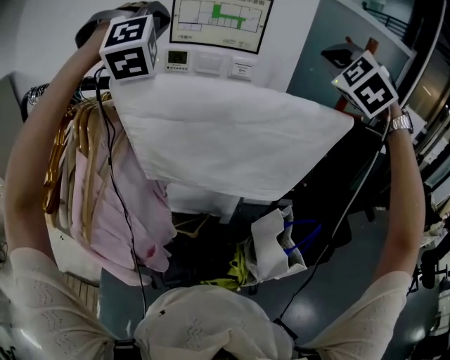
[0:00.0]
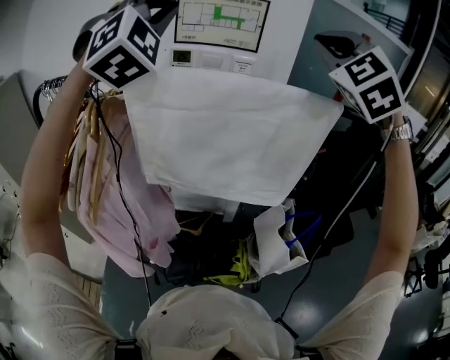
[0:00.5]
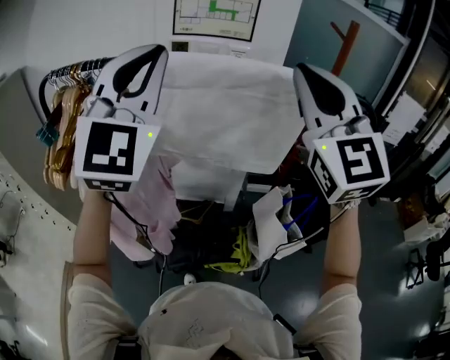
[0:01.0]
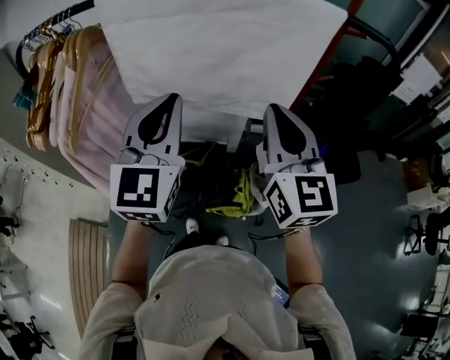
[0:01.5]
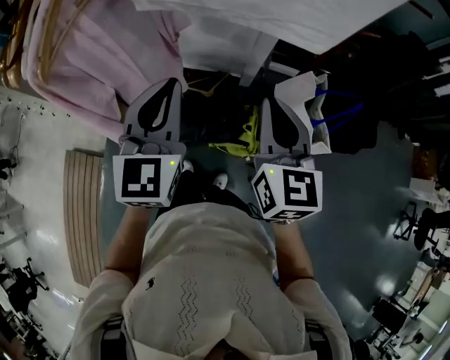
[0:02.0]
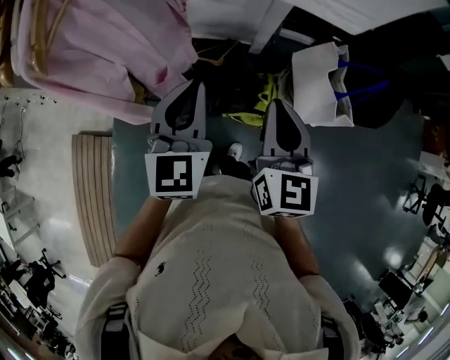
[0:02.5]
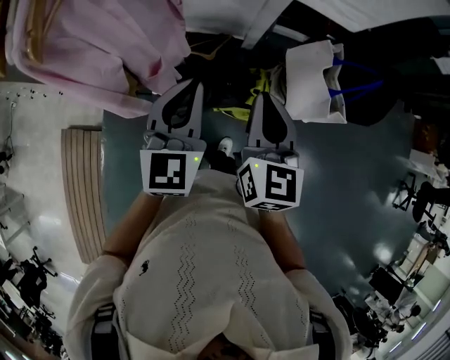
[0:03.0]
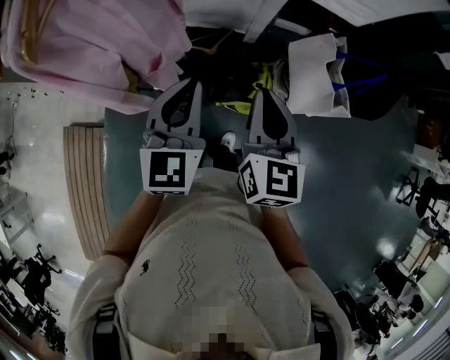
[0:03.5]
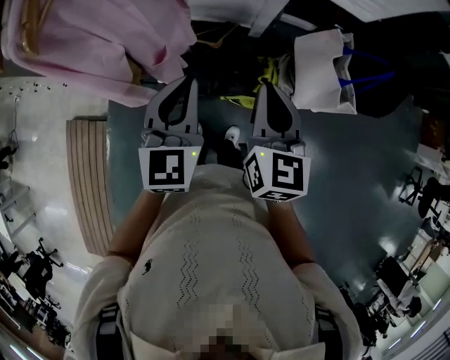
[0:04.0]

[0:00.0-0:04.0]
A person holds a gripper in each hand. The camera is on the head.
0:00.0 to 0:02.0: Both grippers move downward and backward, roughly 50 cm. The left gripper twists about 90 degrees counterclockwise, seen from behind. Meanwhile the right gripper twists roughly 70 degrees clockwise, seen from behind.
0:02.0 to 0:04.0: The right gripper travels downward and to the left by approximately 10 cm, while the left gripper shifts about 10 cm downward.

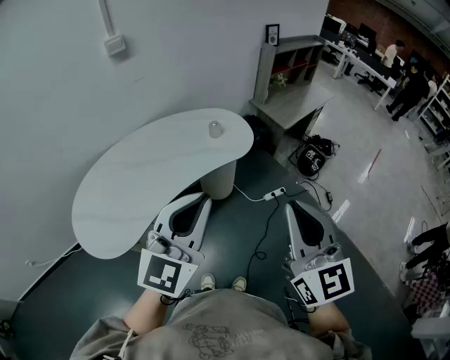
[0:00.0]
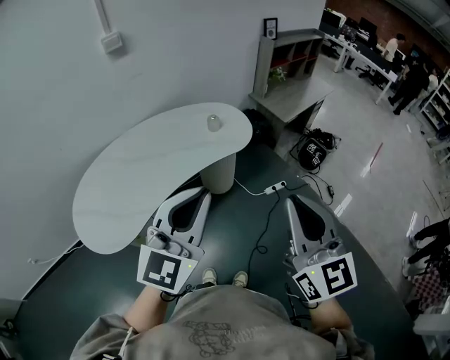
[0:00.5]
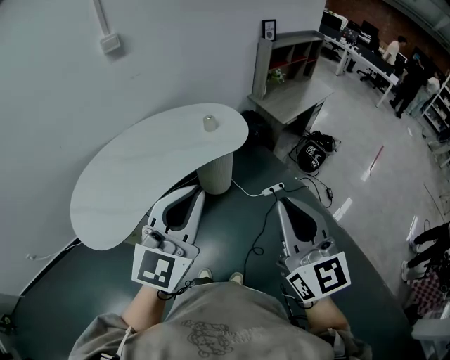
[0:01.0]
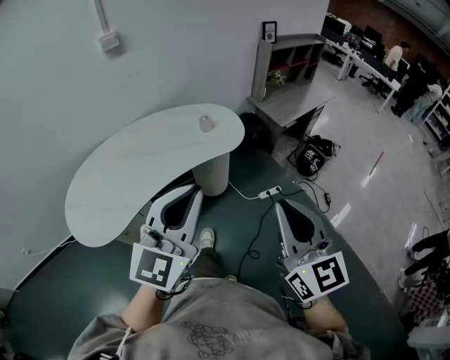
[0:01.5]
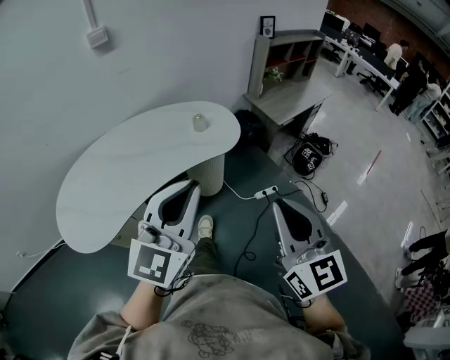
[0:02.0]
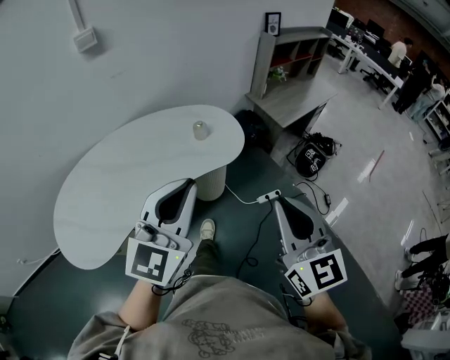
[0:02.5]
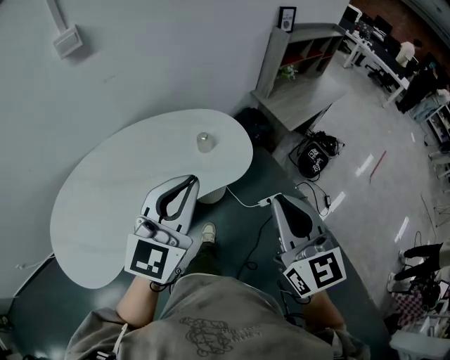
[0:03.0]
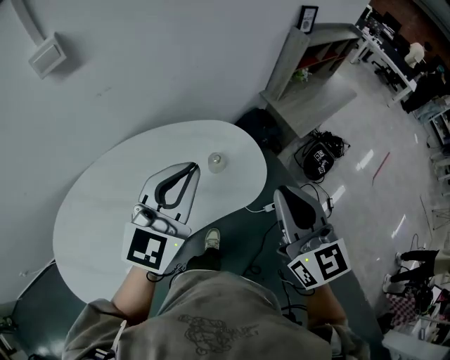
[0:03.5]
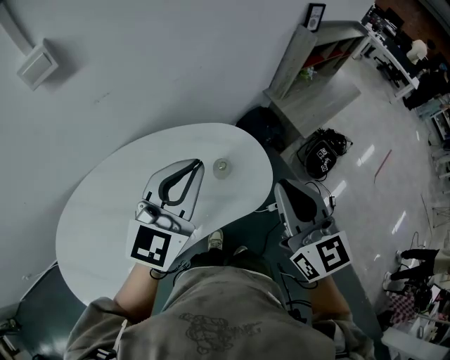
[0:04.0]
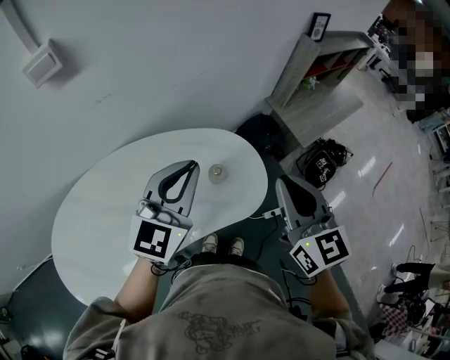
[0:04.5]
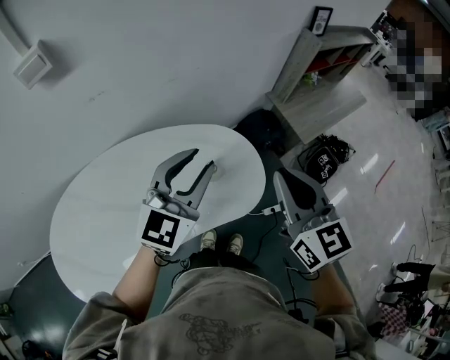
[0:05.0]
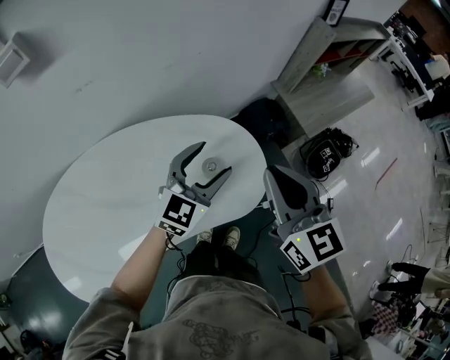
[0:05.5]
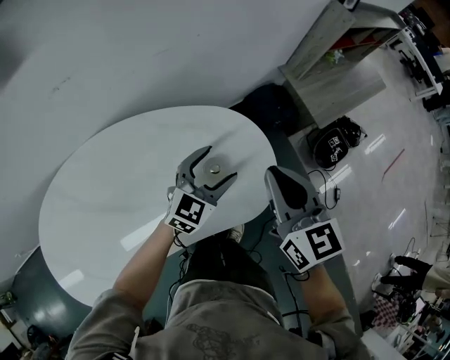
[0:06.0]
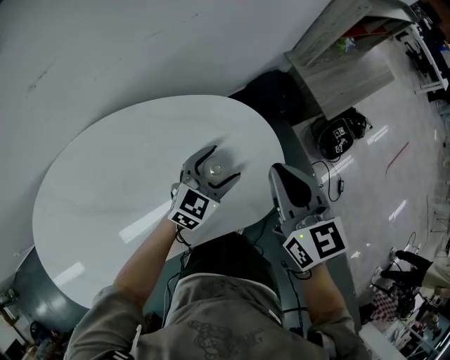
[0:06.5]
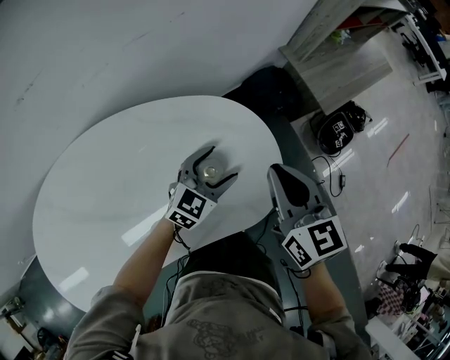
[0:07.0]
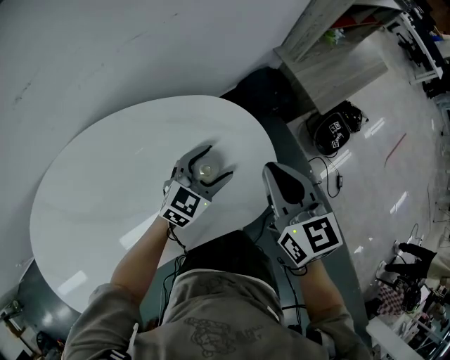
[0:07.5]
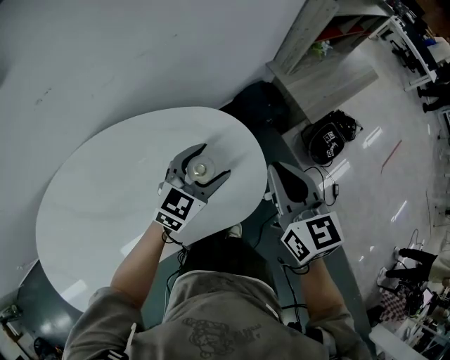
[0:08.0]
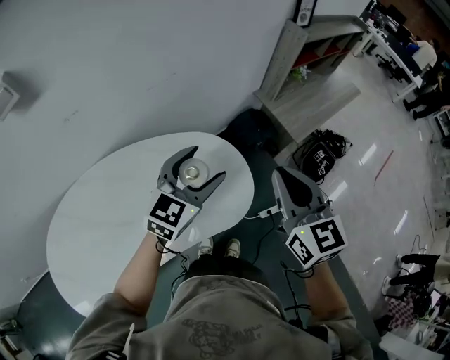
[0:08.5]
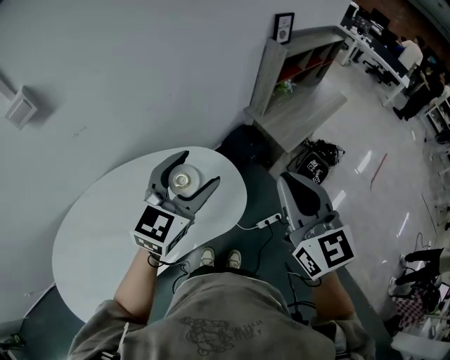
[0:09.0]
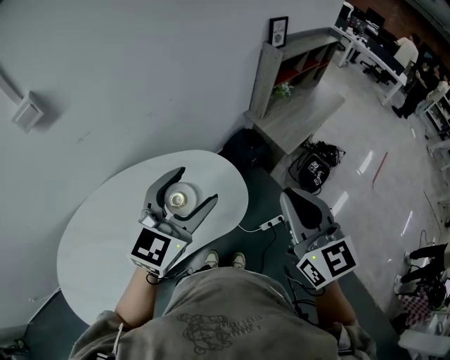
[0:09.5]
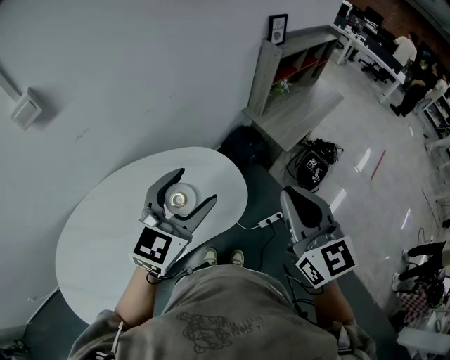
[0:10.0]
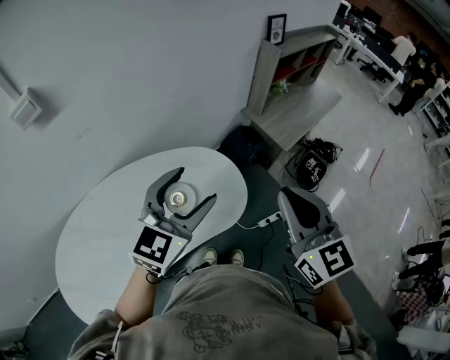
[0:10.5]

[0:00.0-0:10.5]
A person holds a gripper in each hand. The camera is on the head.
0:00.0 to 0:02.0: The left gripper shifts about 5 cm to the right. The right gripper heads to the right and downward, covering roughly 10 cm.
0:02.0 to 0:04.0: The pair of grippers is taken forward, about 40 cm.
0:04.0 to 0:06.5: The left gripper is displaced downward by approximately 35 cm, turns by roughly 20 degrees, and opens up; the right gripper travels downward and forward by some 25 cm.
0:06.5 to 0:08.5: The left gripper moves upward, about 25 cm, while the right gripper moves upward and to the right, some 15 cm.
0:08.5 to 0:10.5: The right gripper moves backward and upward, roughly 15 cm. Meanwhile the left gripper moves upward and backward, roughly 15 cm.

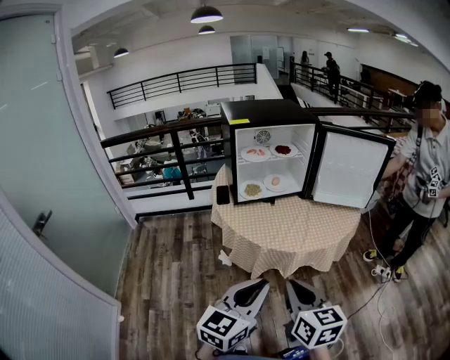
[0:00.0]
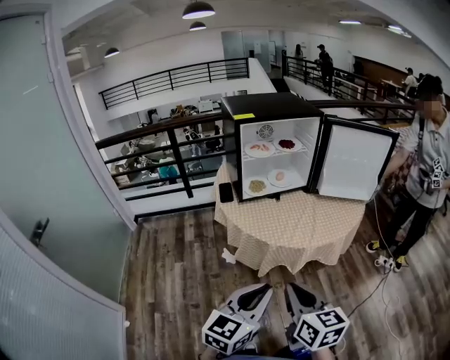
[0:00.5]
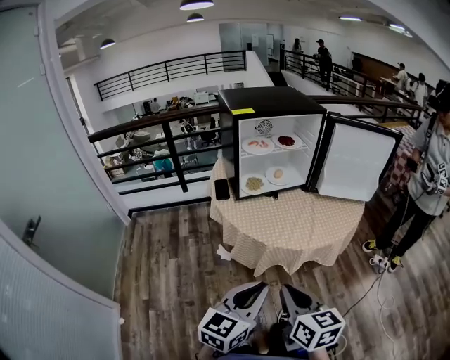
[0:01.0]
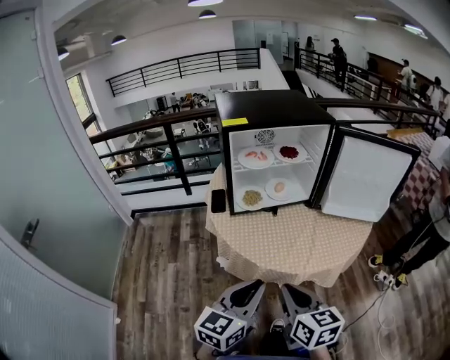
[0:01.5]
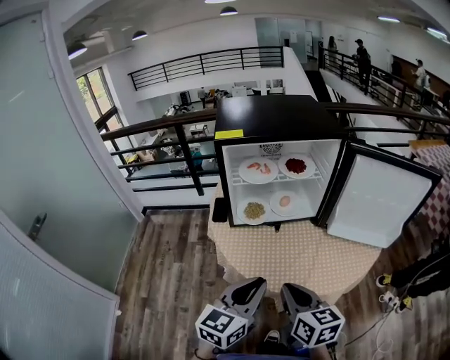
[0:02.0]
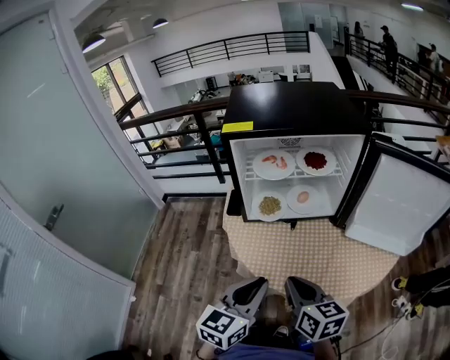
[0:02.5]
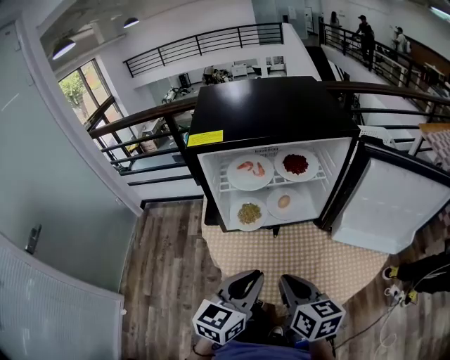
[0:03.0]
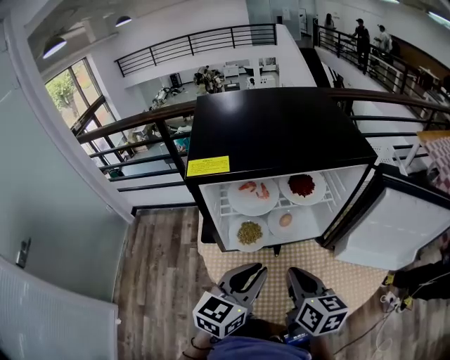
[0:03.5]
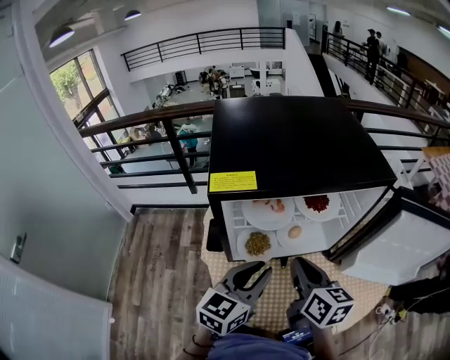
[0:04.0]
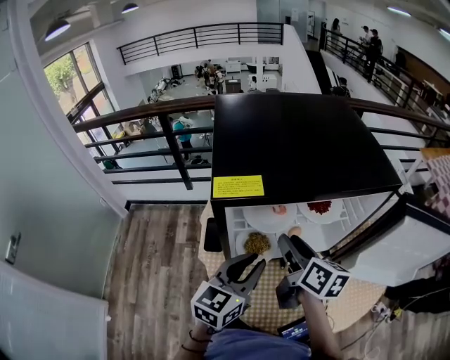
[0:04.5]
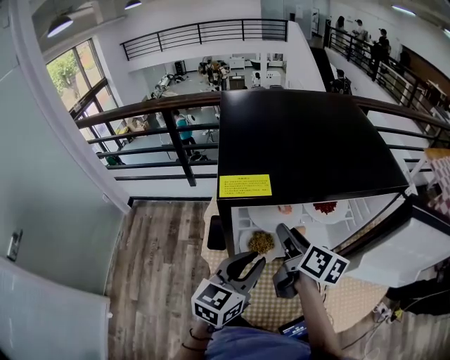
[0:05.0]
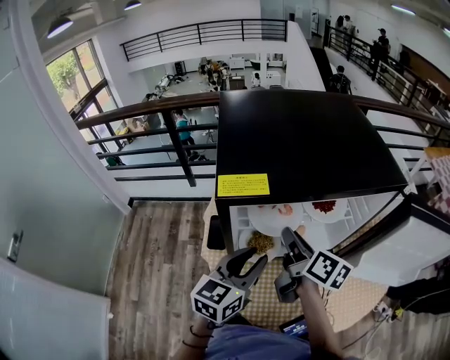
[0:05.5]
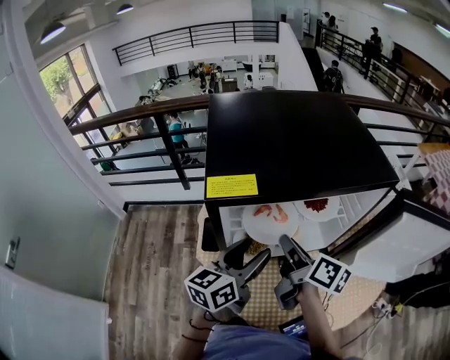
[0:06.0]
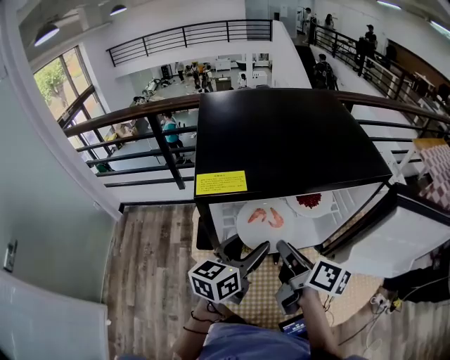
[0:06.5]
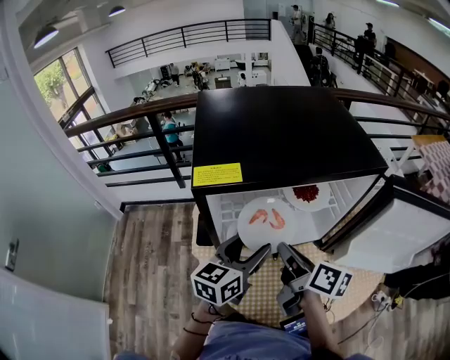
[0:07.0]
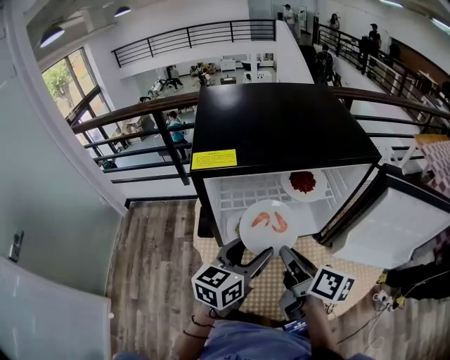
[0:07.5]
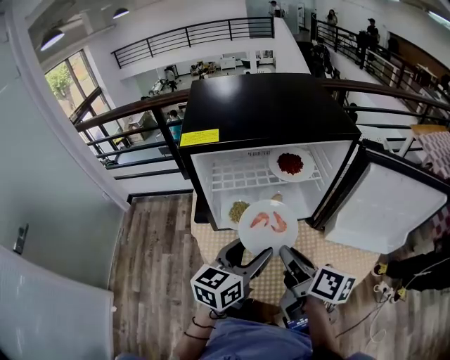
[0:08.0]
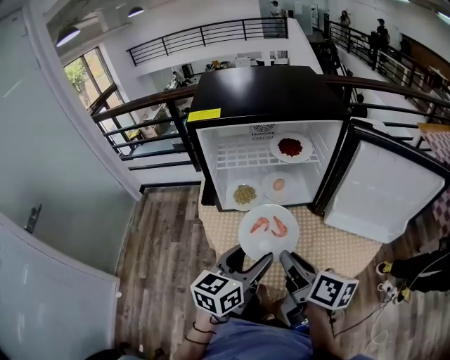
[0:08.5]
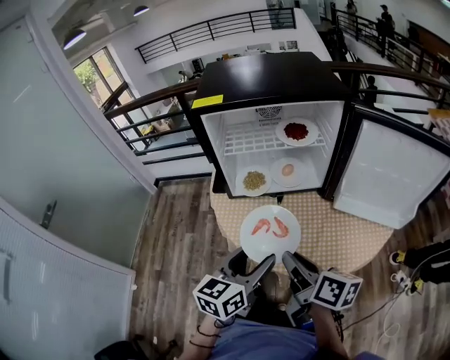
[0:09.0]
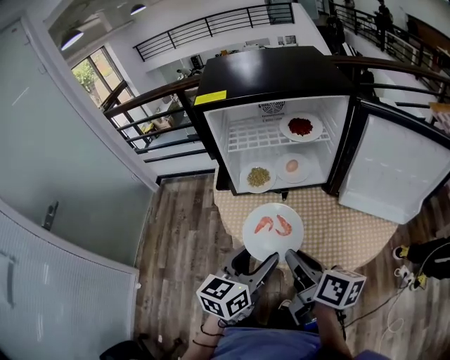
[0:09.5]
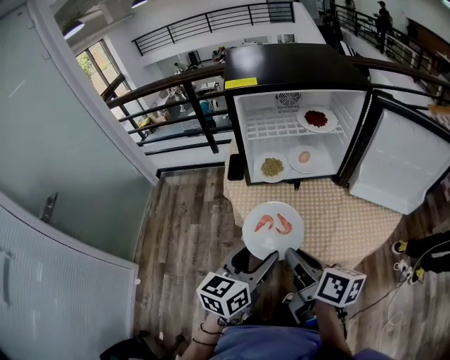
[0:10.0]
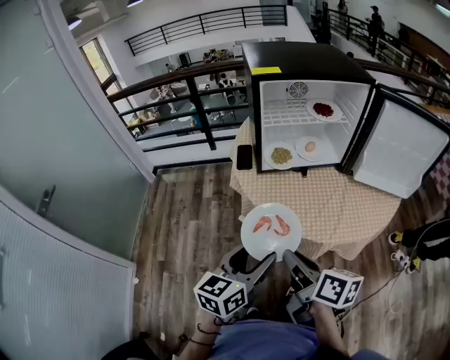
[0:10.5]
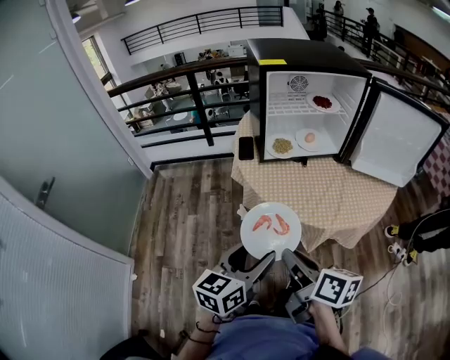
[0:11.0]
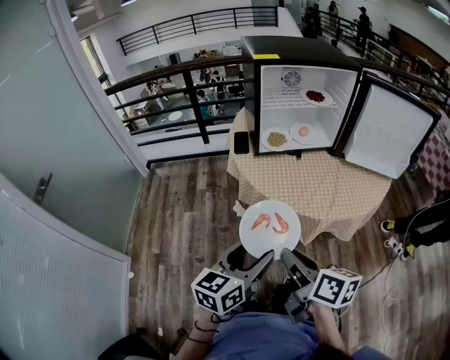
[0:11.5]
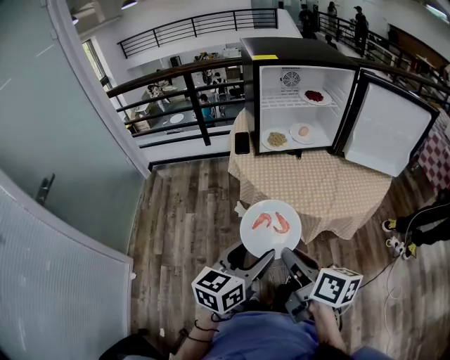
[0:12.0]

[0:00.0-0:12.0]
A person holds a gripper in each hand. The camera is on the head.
0:00.0 to 0:02.0: Both grippers move forward, approximately 25 cm.
0:02.0 to 0:04.0: Both grippers travel together forward, approximately 25 cm.
0:04.0 to 0:06.0: Both grippers travel together forward, about 5 cm. The left gripper opens its fingers. The right gripper rotates some 30 degrees, and opens and closes again.
0:06.0 to 0:08.0: The grippers both shift backward and to the right by about 15 cm.
0:08.0 to 0:10.0: The grippers both shift backward and to the left by some 20 cm.
0:10.0 to 0:12.0: Both grippers move backward and to the left, some 20 cm.
